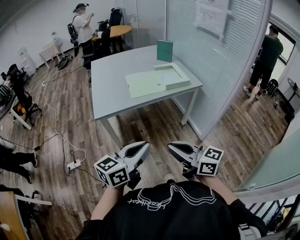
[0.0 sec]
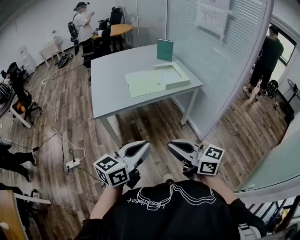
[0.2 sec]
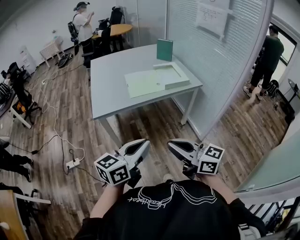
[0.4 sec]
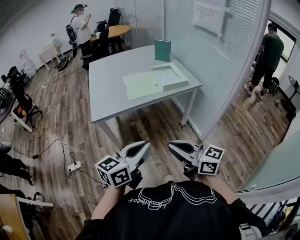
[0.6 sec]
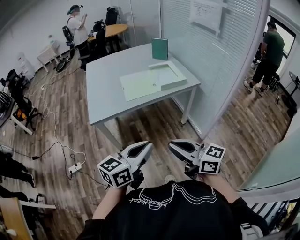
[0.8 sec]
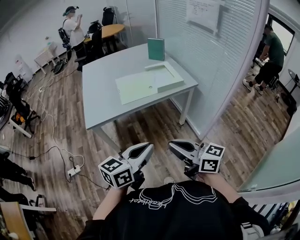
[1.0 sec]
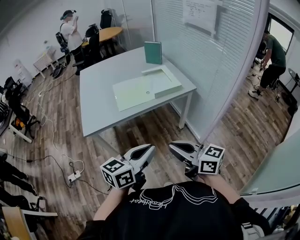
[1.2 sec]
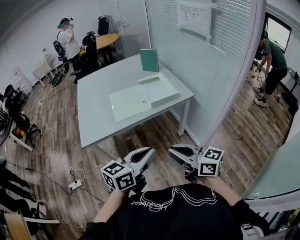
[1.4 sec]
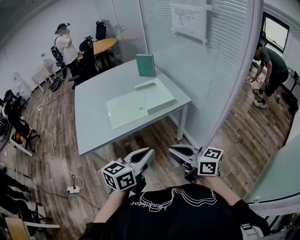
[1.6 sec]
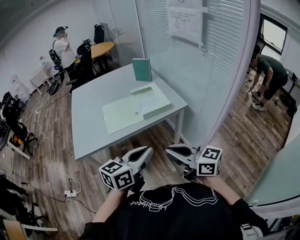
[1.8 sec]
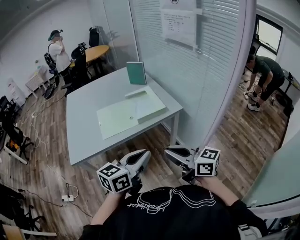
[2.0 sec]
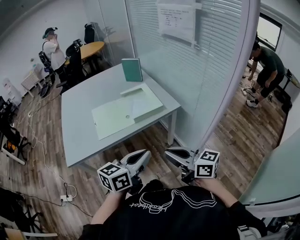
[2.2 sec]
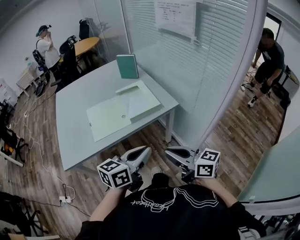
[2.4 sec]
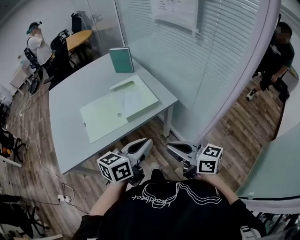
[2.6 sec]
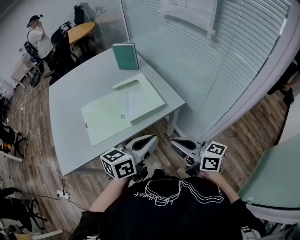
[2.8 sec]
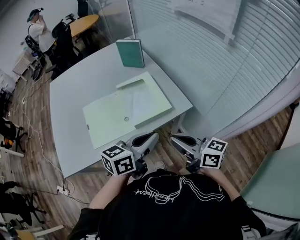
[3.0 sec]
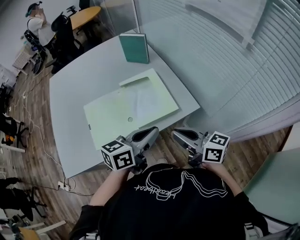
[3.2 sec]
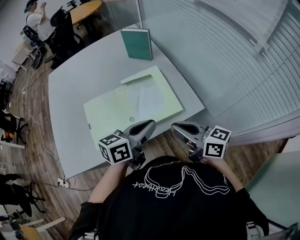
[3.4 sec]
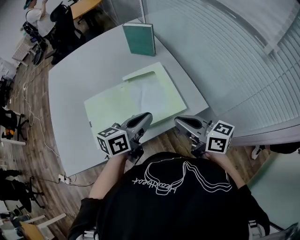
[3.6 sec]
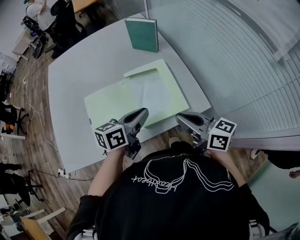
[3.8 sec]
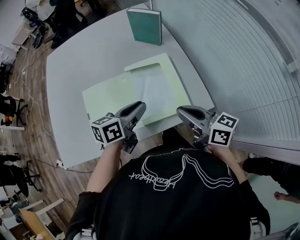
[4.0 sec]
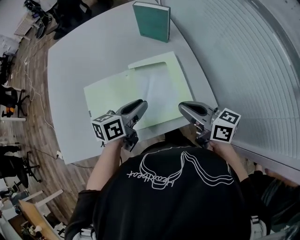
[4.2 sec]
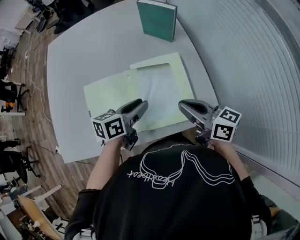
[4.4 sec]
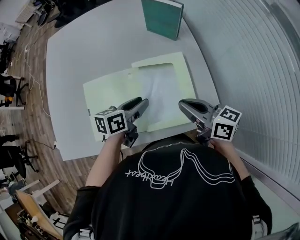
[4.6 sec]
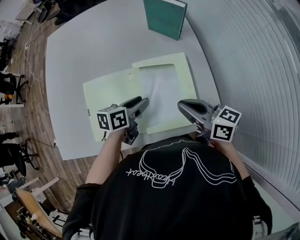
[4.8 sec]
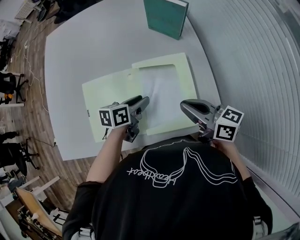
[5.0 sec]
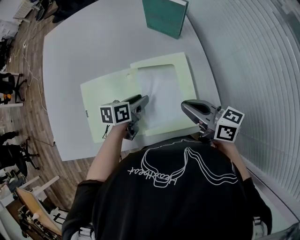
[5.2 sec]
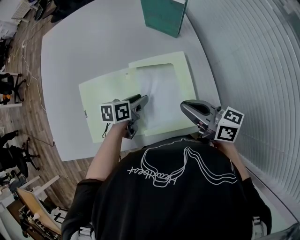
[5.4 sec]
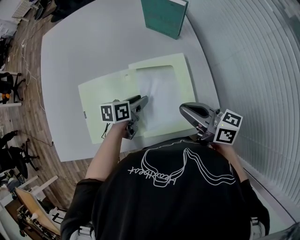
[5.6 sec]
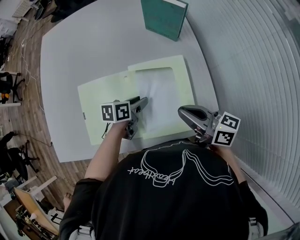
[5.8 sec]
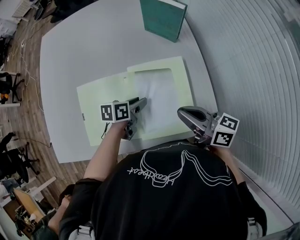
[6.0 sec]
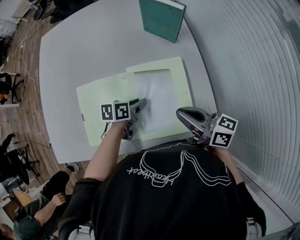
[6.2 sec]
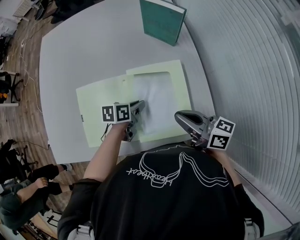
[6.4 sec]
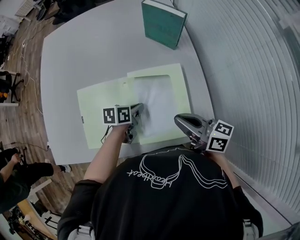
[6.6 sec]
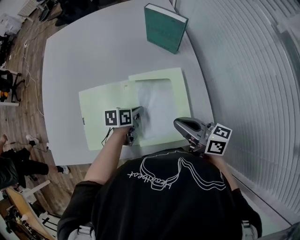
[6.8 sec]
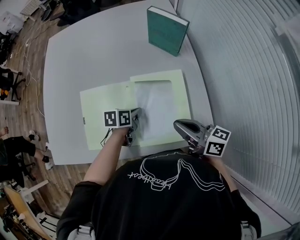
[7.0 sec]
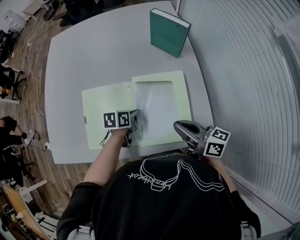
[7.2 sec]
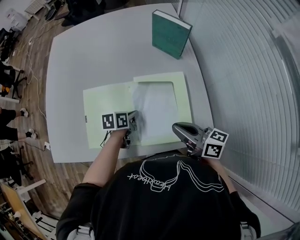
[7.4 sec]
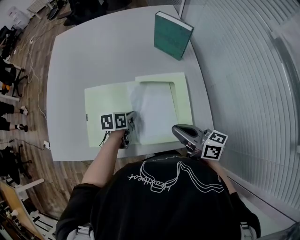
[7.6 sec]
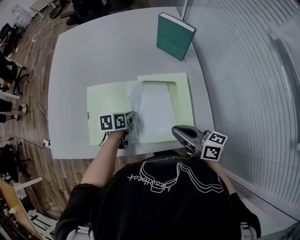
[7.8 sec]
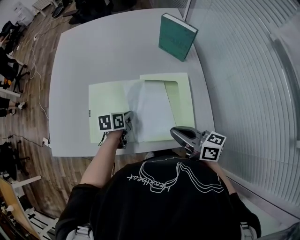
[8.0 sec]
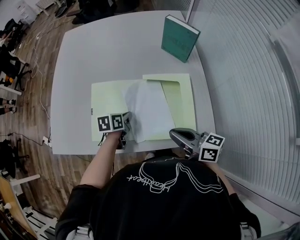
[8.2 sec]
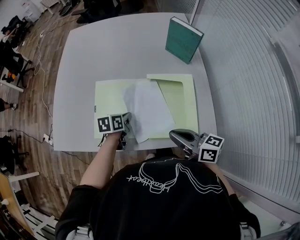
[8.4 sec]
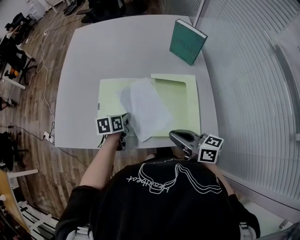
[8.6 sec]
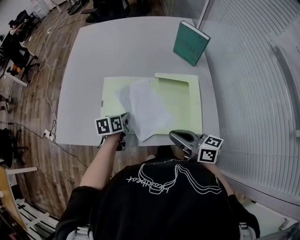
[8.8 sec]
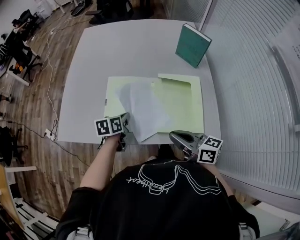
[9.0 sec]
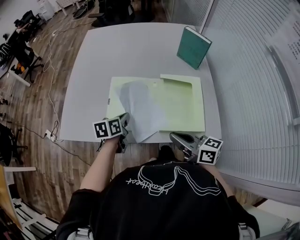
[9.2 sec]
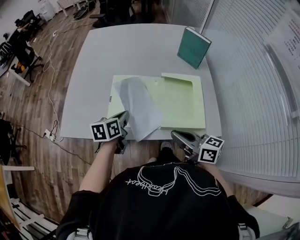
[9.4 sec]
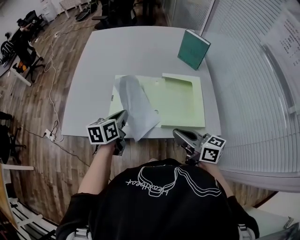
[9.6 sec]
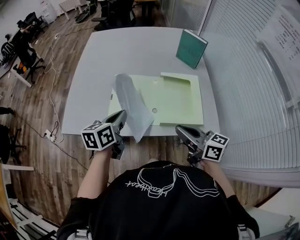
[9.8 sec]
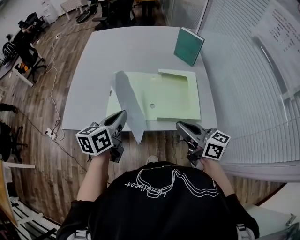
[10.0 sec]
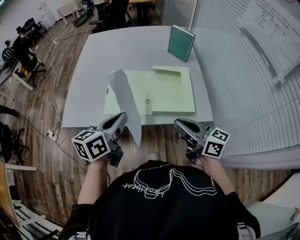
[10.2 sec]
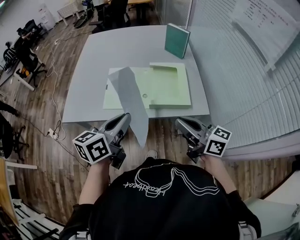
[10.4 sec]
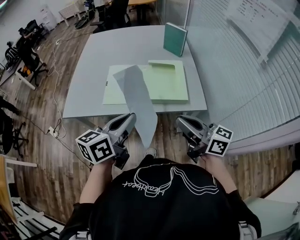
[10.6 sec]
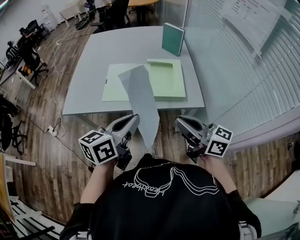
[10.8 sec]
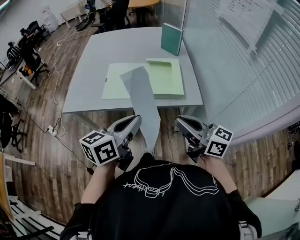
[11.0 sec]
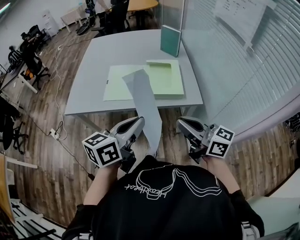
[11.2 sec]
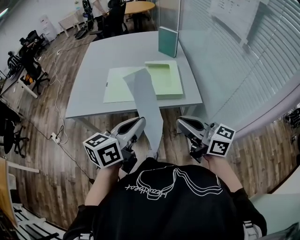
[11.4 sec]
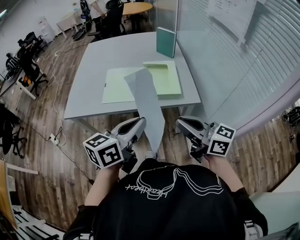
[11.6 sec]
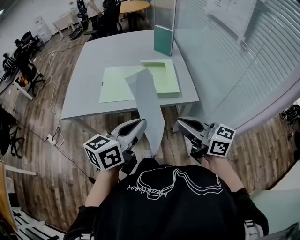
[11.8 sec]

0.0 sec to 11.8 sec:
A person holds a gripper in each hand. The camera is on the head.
0.0 sec to 1.4 sec: The right gripper goes roughly 20 cm forward and to the right; the left gripper is displaced to the right and forward by roughly 20 cm.
1.4 sec to 3.0 sec: The two grippers go roughly 30 cm forward.
3.0 sec to 4.4 sec: The right gripper travels forward by roughly 20 cm. Meanwhile the left gripper moves forward, downward and to the left, approximately 25 cm, turns by some 30 degrees, and opens.
4.4 sec to 6.0 sec: The left gripper heads downward, covering some 10 cm.
6.0 sec to 7.4 sec: The two grippers go some 10 cm downward and forward. The left gripper closes up.
7.4 sec to 8.8 sec: The right gripper heads to the left and backward, covering about 10 cm; the left gripper travels to the left by some 15 cm.
8.8 sec to 10.4 sec: The left gripper travels backward and upward by some 35 cm, and points its fingers approximately 30 degrees further upward. The right gripper travels backward and upward by roughly 20 cm.
10.4 sec to 11.8 sec: The left gripper goes some 15 cm backward and to the right, while the right gripper heads backward, covering about 10 cm.

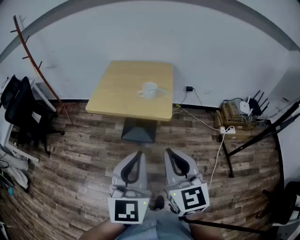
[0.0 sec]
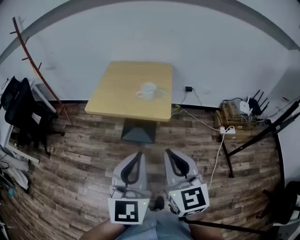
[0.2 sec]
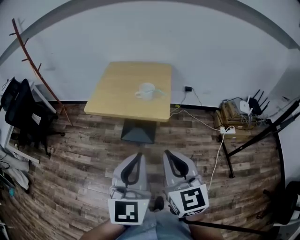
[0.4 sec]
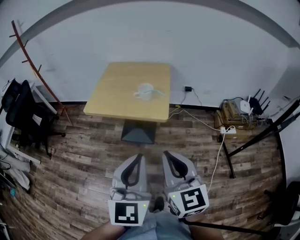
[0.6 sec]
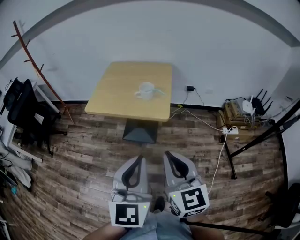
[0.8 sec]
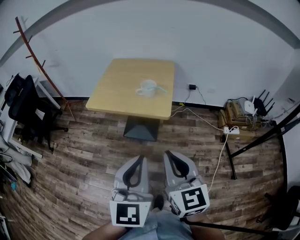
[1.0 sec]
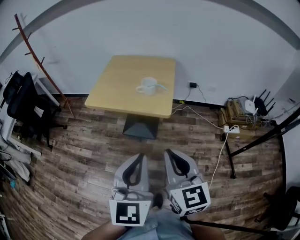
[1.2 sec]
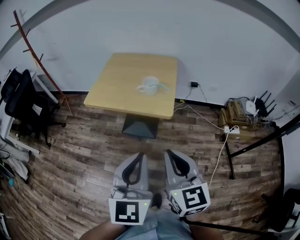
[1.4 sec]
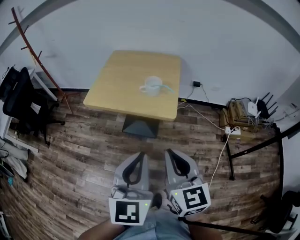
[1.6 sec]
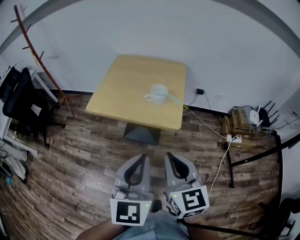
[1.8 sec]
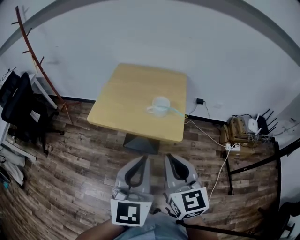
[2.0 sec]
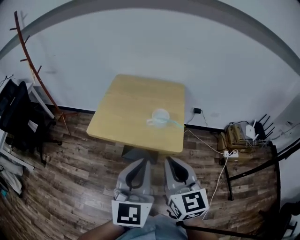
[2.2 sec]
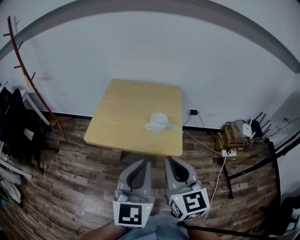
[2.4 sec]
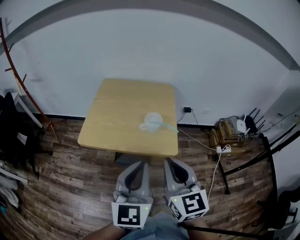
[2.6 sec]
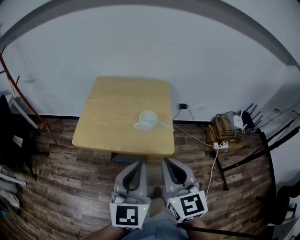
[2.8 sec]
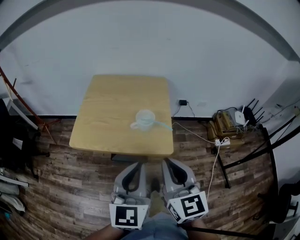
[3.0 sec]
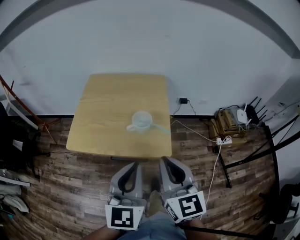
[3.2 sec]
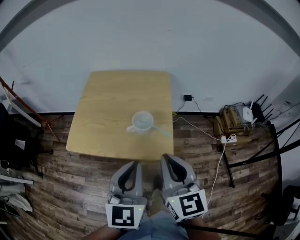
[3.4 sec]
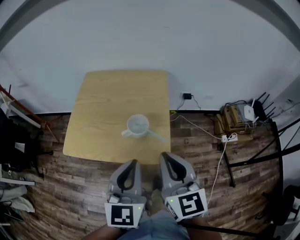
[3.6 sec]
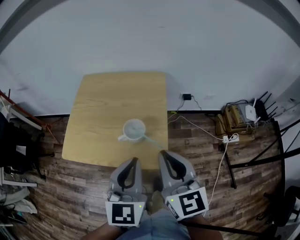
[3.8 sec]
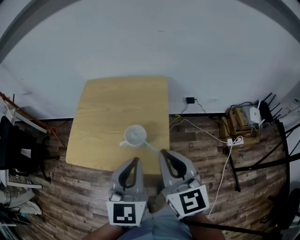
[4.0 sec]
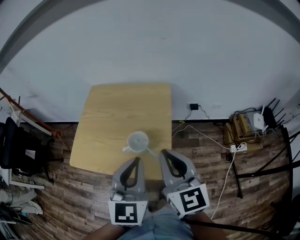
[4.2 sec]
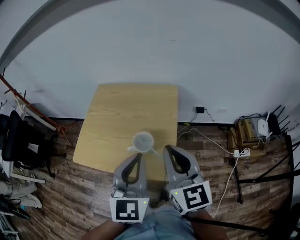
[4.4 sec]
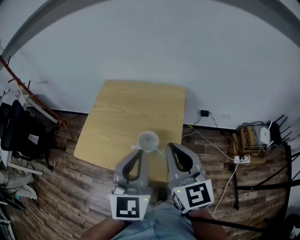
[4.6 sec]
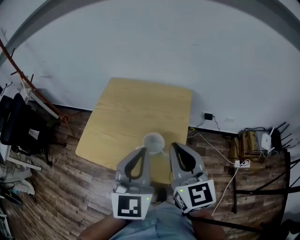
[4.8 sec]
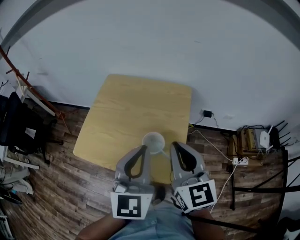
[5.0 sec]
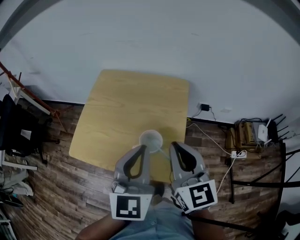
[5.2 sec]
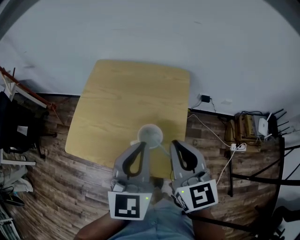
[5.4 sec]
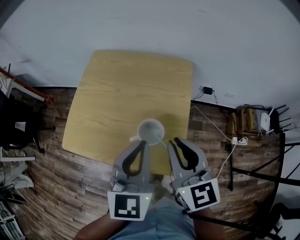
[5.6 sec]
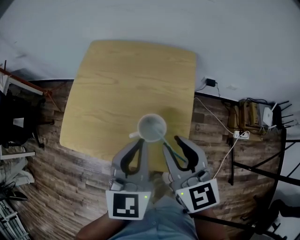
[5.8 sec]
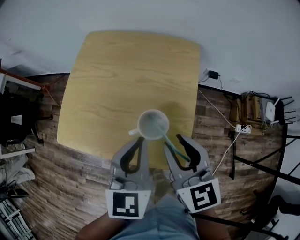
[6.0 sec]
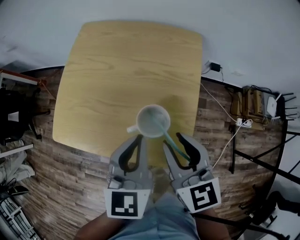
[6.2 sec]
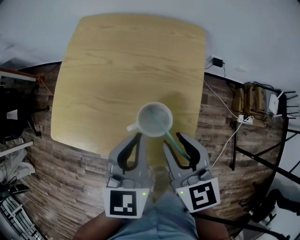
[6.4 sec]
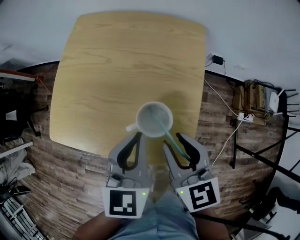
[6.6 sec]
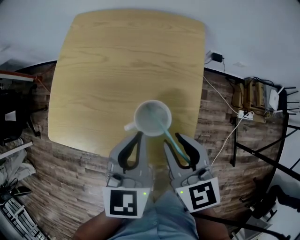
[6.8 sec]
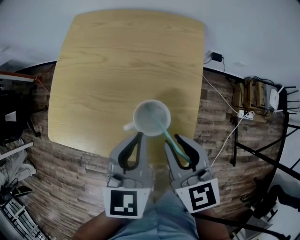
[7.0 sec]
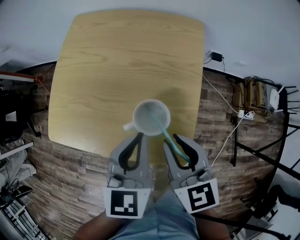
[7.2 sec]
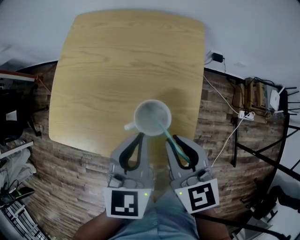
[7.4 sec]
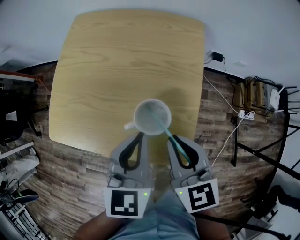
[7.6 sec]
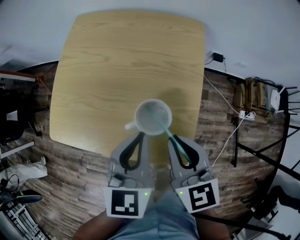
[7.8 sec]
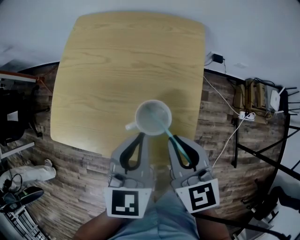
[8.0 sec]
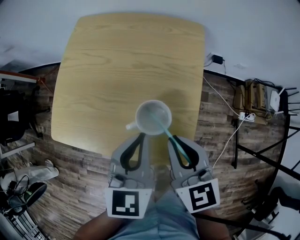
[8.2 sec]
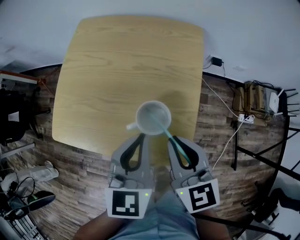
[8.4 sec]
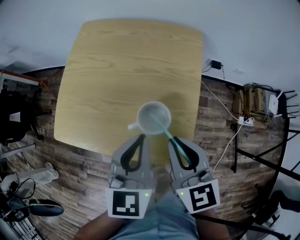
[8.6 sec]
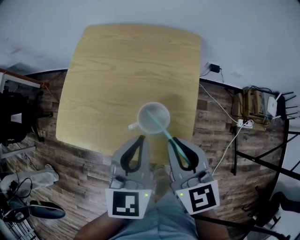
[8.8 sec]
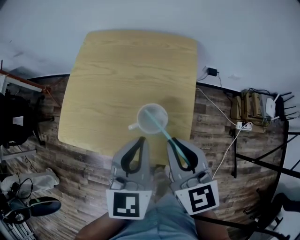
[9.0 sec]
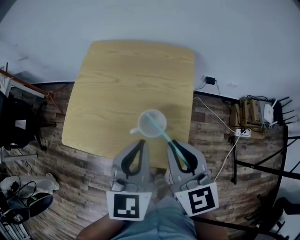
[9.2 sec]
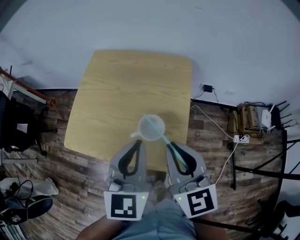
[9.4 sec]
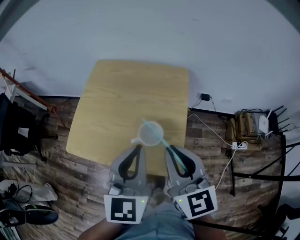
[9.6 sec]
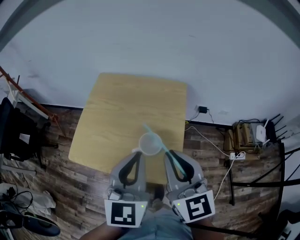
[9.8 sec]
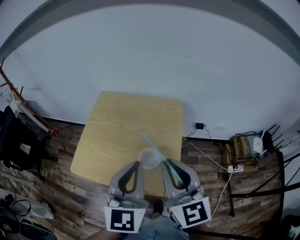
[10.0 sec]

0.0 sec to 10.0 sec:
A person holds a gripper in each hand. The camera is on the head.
0.0 sec to 1.4 sec: The right gripper shifts by about 5 cm.
1.4 sec to 2.8 sec: Both grippers move forward, some 20 cm.
2.8 sec to 4.2 sec: The two grippers go roughly 20 cm forward and to the right.
4.2 sec to 5.8 sec: The right gripper moves downward, forward and to the left, approximately 10 cm, and opens; the left gripper shifts about 10 cm forward, downward and to the left.
5.8 sec to 7.2 sec: Both grippers travel together downward, approximately 10 cm.
7.2 sec to 8.6 sec: The grippers stay close to where they were, moving slightly.
8.6 sec to 10.0 sec: Both grippers move upward, about 15 cm. The right gripper turns by about 30 degrees. The left gripper rotates some 20 degrees.

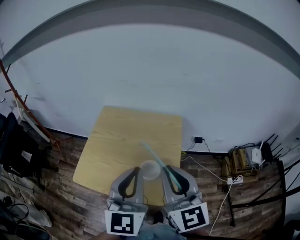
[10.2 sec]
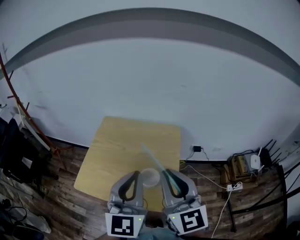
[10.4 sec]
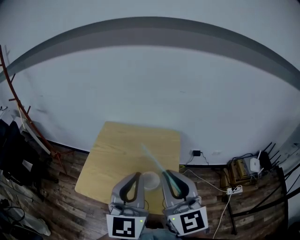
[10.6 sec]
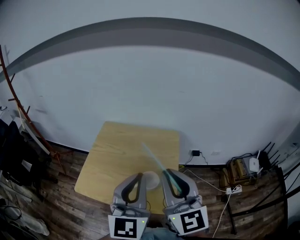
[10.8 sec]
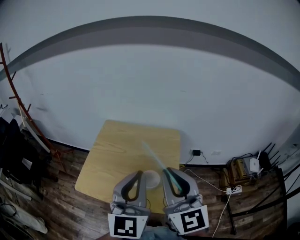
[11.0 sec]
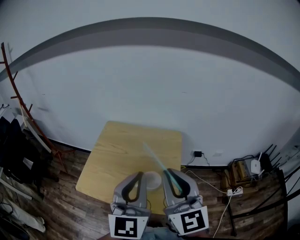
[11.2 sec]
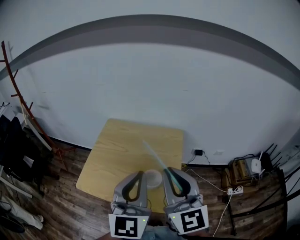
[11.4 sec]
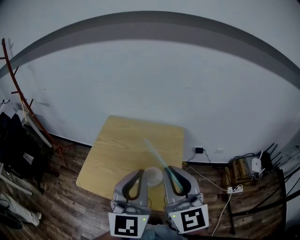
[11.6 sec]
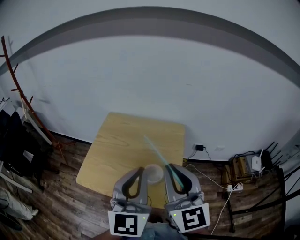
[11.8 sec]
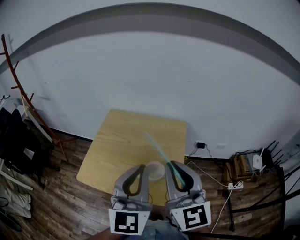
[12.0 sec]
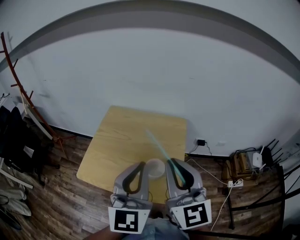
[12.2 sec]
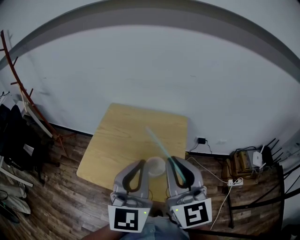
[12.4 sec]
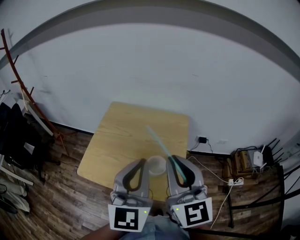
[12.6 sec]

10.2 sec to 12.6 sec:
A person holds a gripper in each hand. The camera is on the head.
10.2 sec to 12.6 sec: The grippers make only small movements.
